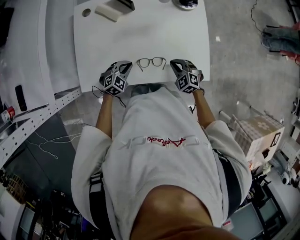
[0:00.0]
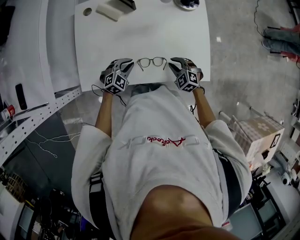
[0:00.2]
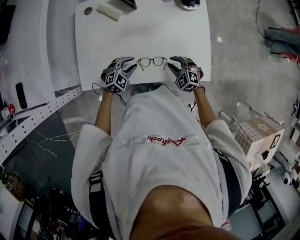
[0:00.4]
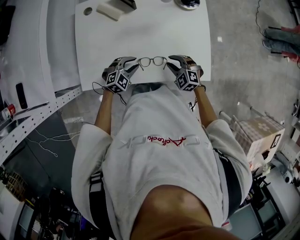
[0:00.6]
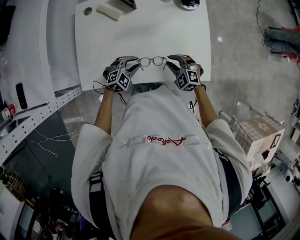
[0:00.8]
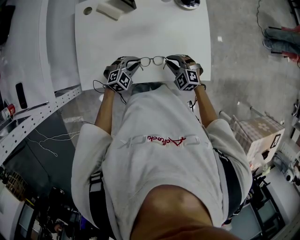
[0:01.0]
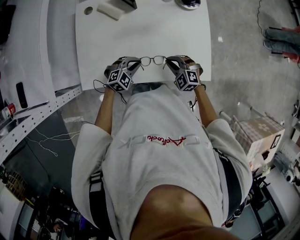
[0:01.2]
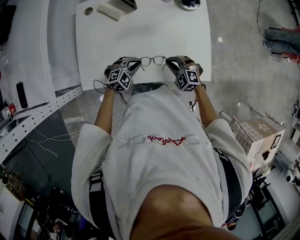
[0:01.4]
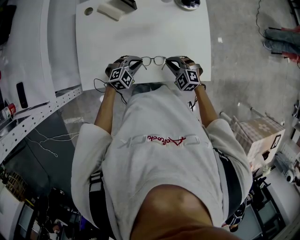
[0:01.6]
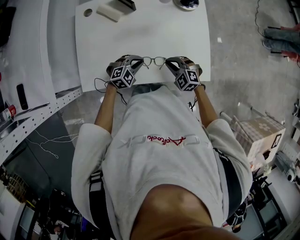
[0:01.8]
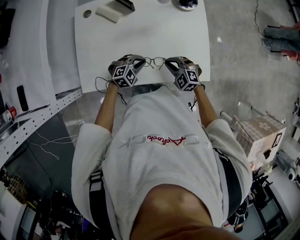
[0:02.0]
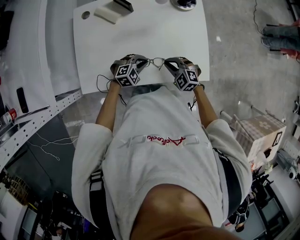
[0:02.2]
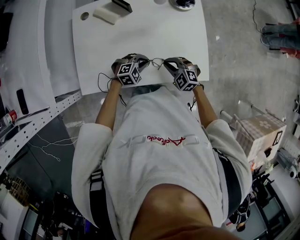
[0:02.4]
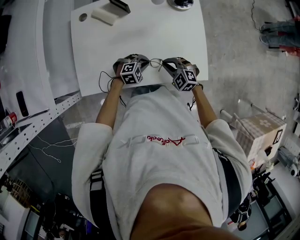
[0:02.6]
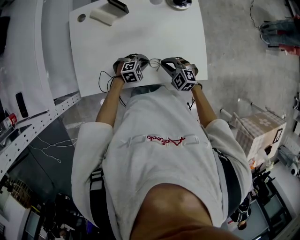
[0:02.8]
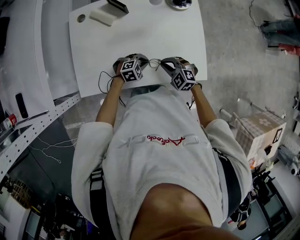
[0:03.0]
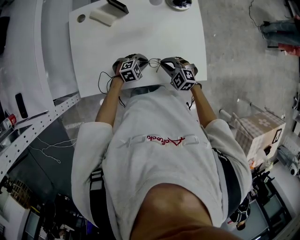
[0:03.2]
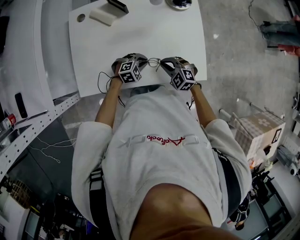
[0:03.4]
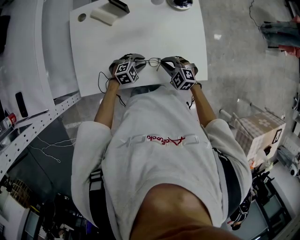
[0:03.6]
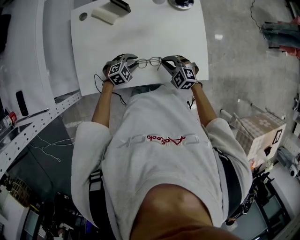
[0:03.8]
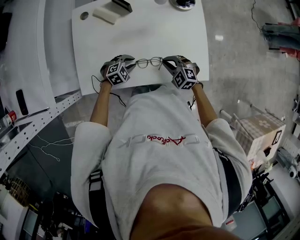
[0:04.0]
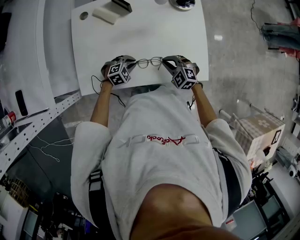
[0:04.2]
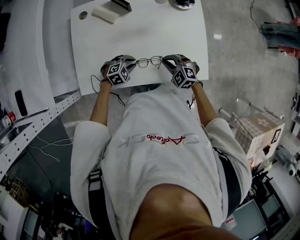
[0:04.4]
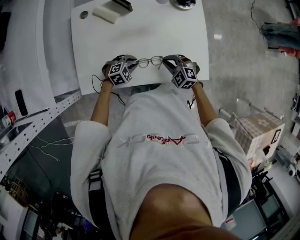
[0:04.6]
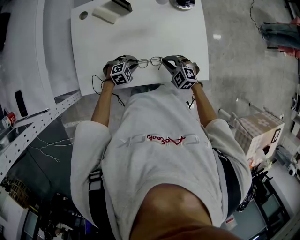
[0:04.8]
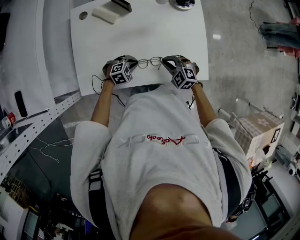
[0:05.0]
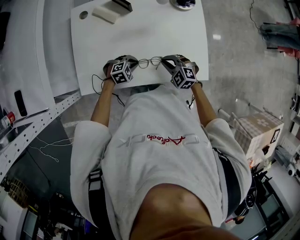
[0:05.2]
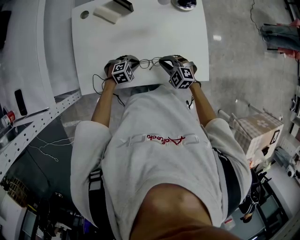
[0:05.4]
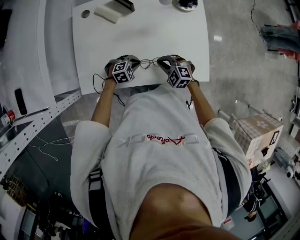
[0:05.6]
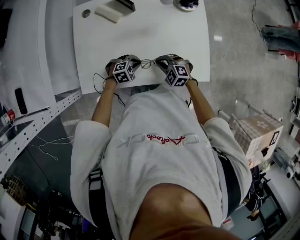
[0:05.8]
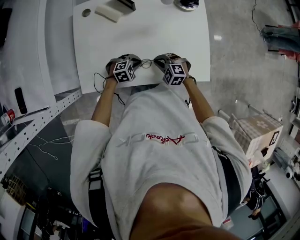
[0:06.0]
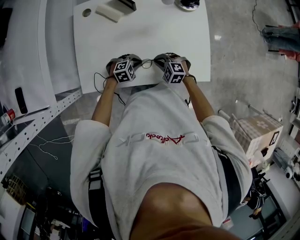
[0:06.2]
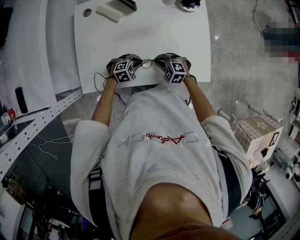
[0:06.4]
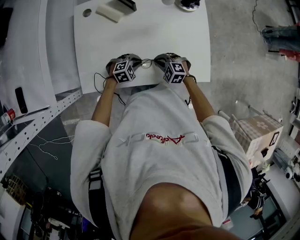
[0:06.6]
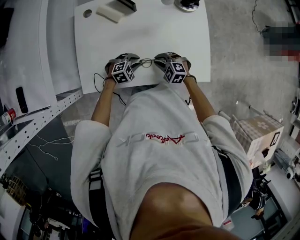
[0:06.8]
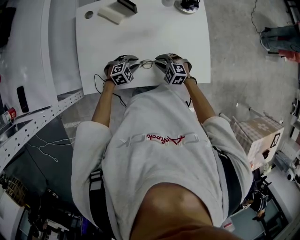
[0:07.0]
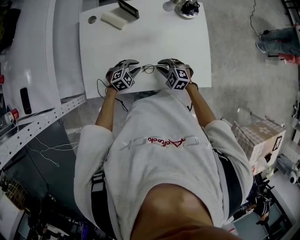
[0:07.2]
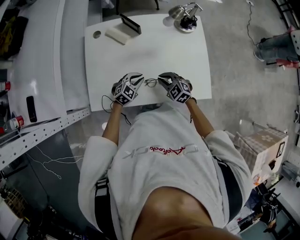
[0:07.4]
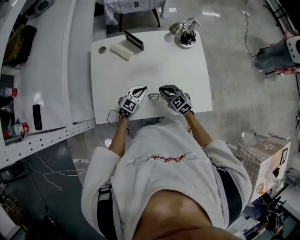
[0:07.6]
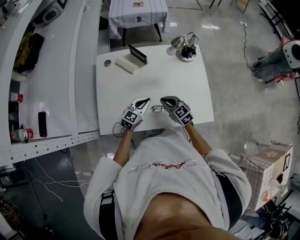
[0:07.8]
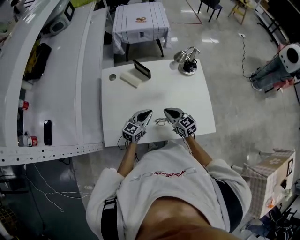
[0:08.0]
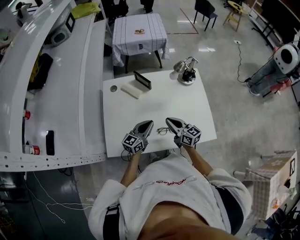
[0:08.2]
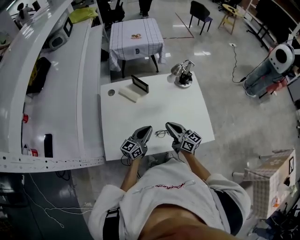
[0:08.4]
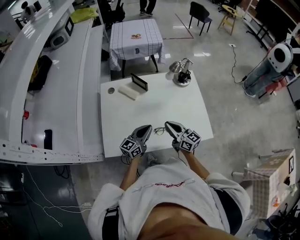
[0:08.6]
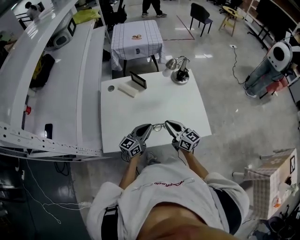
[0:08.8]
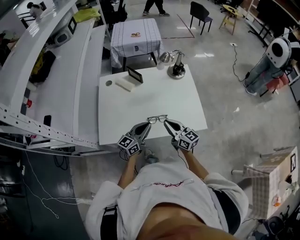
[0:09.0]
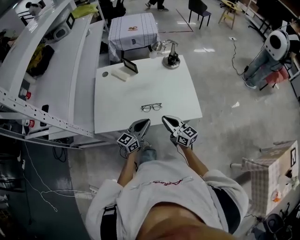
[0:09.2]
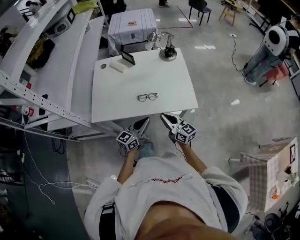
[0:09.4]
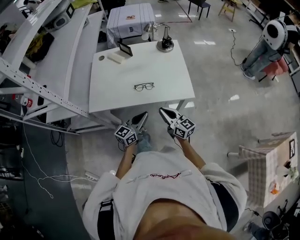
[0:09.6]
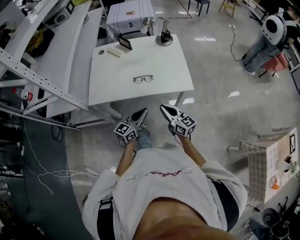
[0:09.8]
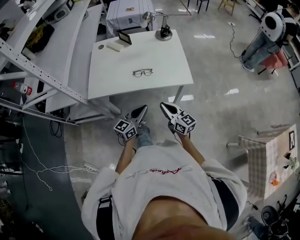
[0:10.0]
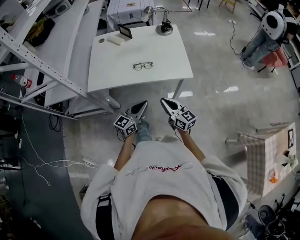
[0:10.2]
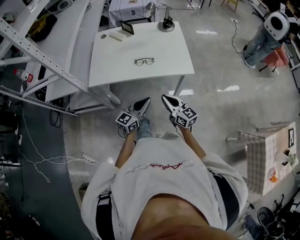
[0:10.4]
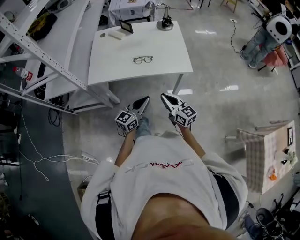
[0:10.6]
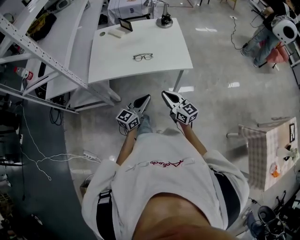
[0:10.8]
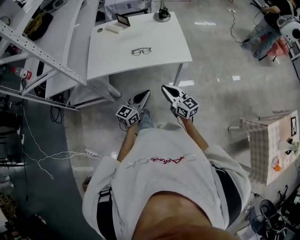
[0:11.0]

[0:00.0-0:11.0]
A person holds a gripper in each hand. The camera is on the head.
0:00.0 to 0:01.6: The left gripper moves about 5 cm, and opens, then closes again; the right gripper opens, then closes once more.
0:01.6 to 0:03.2: The left gripper ends up about 10 cm from where it was.
0:03.2 to 0:04.8: The left gripper ends up roughly 5 cm from where it was.
0:04.8 to 0:06.2: The right gripper changes place by roughly 5 cm.
0:06.2 to 0:07.8: Both grippers travel together upward, about 10 cm. The right gripper rotates some 40 degrees, while the left gripper tilts its fingers roughly 40 degrees upward.
0:07.8 to 0:09.4: The right gripper travels backward and to the right by roughly 25 cm, and turns by some 40 degrees, while the left gripper is displaced backward by approximately 25 cm, and swivels roughly 20 degrees.
0:09.4 to 0:11.0: The grippers both shift backward by approximately 15 cm.

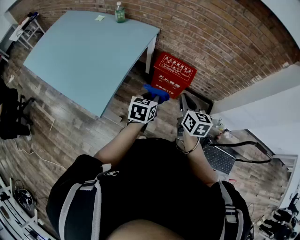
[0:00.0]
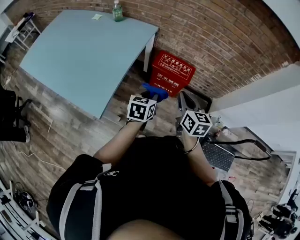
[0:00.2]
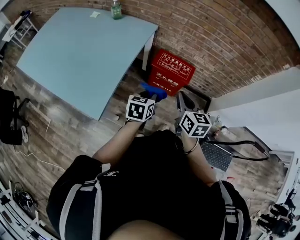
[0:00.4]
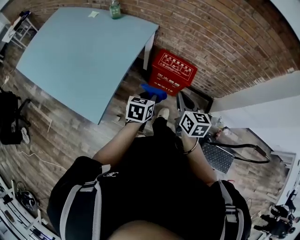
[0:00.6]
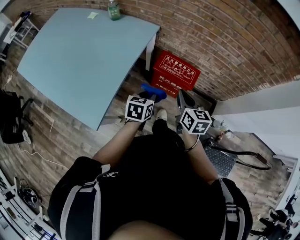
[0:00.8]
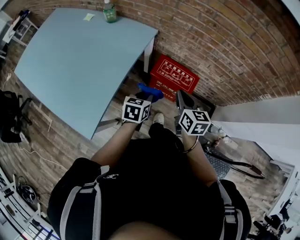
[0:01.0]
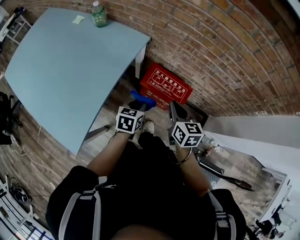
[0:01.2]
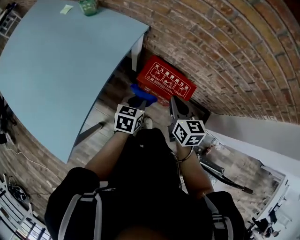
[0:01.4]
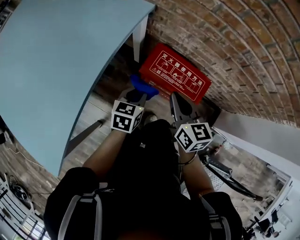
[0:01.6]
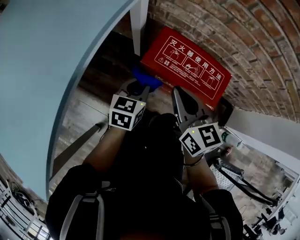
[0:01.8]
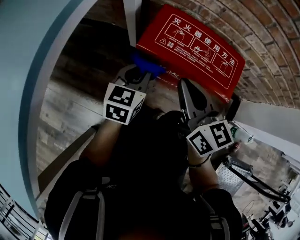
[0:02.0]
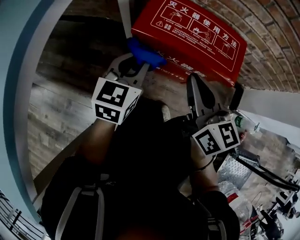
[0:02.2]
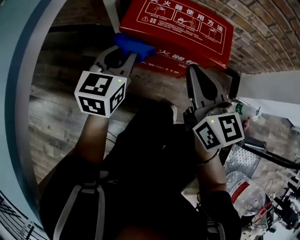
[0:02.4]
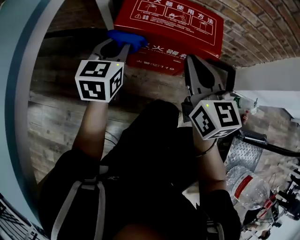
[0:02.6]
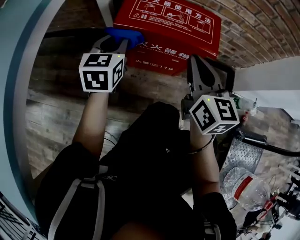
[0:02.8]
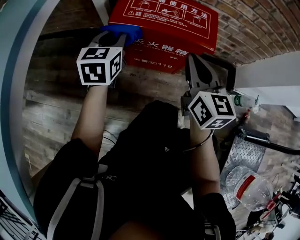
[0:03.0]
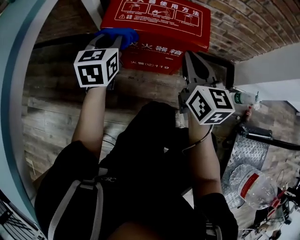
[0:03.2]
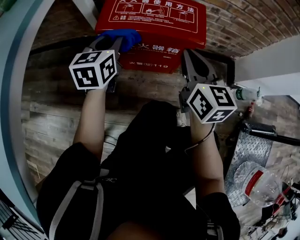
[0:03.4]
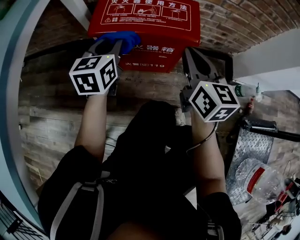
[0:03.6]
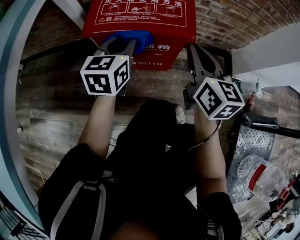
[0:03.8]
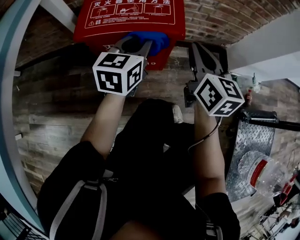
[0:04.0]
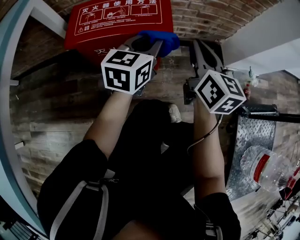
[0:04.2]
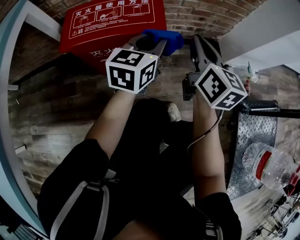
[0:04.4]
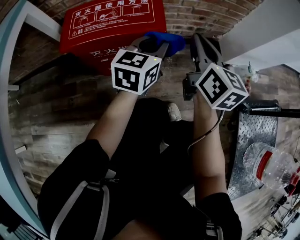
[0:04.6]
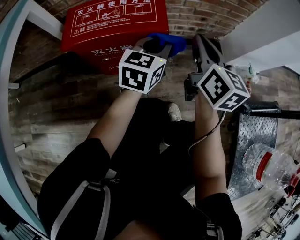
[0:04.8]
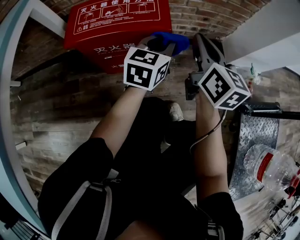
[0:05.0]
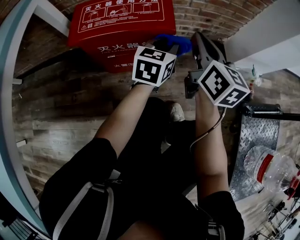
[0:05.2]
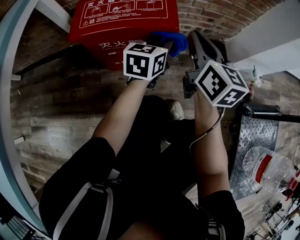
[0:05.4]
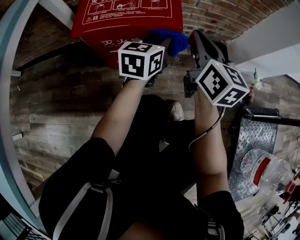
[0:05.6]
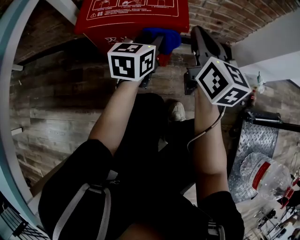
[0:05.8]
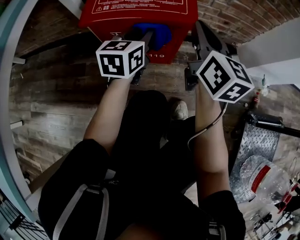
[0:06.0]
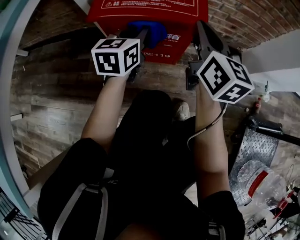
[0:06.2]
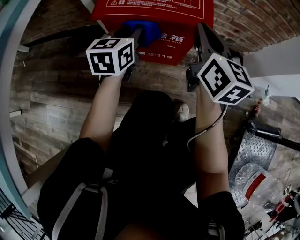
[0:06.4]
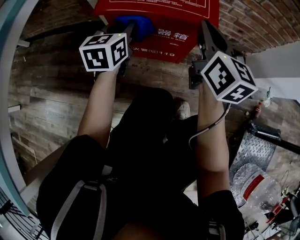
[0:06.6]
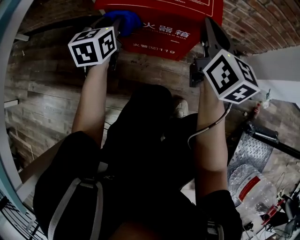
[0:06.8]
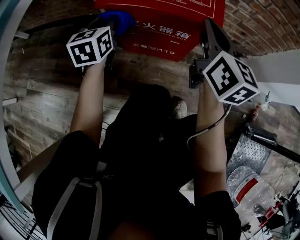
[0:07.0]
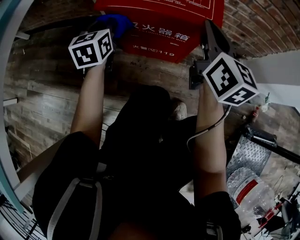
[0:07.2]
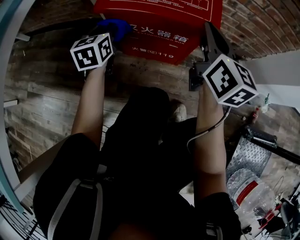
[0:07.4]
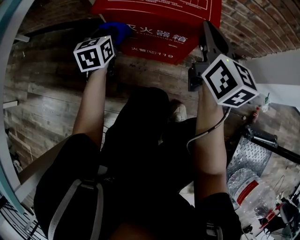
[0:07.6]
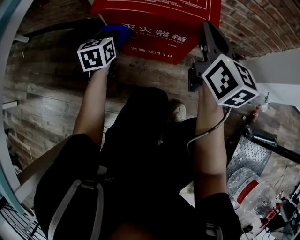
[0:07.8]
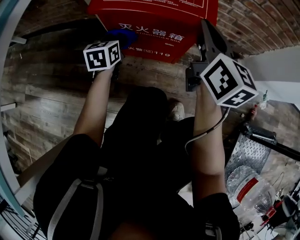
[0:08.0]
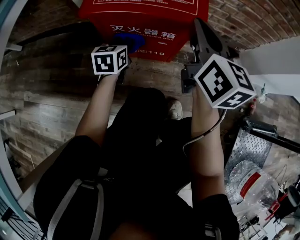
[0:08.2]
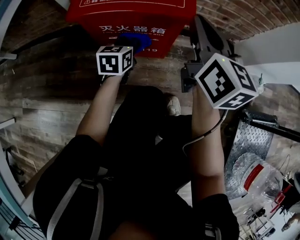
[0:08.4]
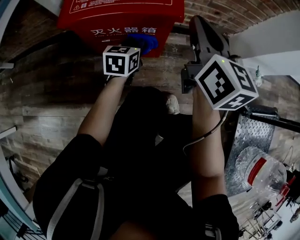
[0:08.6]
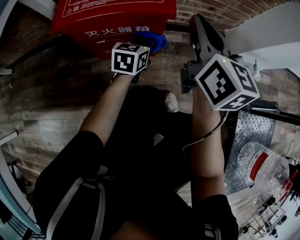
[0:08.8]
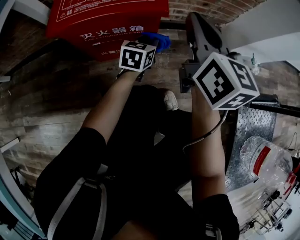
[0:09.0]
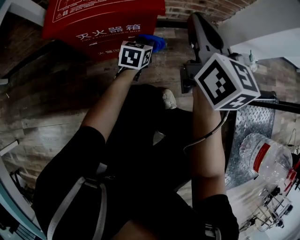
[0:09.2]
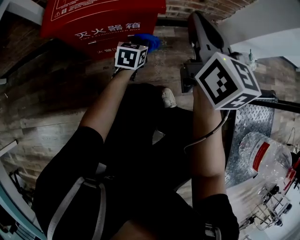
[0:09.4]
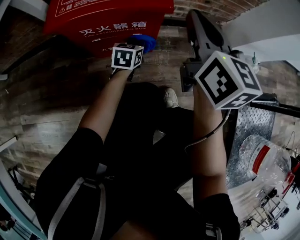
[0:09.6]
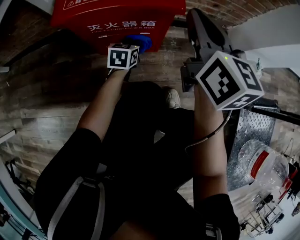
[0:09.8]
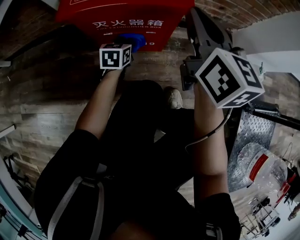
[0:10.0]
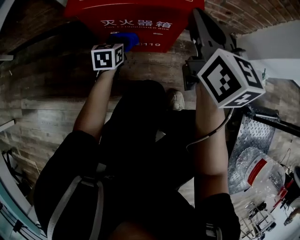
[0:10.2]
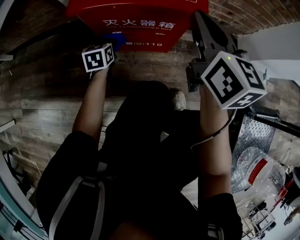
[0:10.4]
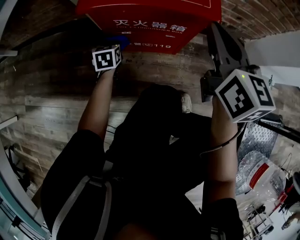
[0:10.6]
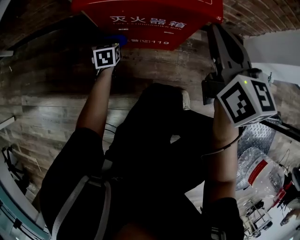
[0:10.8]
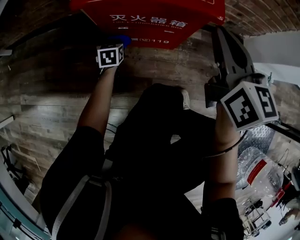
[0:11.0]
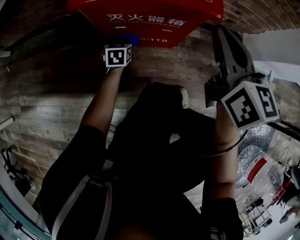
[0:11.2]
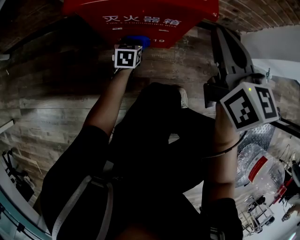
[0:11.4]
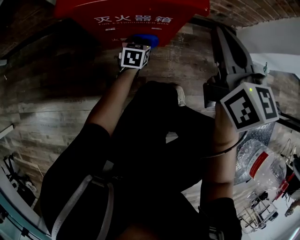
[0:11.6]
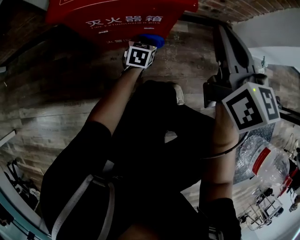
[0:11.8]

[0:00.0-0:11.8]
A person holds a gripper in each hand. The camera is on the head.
0:00.0 to 0:01.4: The two grippers go approximately 35 cm forward and downward.
0:01.4 to 0:03.0: Both grippers travel together downward, about 25 cm. The right gripper swivels some 30 degrees, while the left gripper swivels about 30 degrees.
0:03.0 to 0:04.4: The right gripper goes roughly 15 cm to the right, and changes its angle by some 20 degrees. The left gripper goes approximately 30 cm to the right, and turns by some 30 degrees.
0:04.4 to 0:06.0: The two grippers go about 10 cm to the left.
0:06.0 to 0:07.4: The left gripper is displaced to the left by some 20 cm, and rotates roughly 30 degrees.
0:07.4 to 0:08.8: The left gripper shifts about 25 cm to the right, and swivels about 30 degrees; the right gripper is displaced to the right by some 10 cm.
0:08.8 to 0:10.4: The right gripper is displaced to the left by some 10 cm. Meanwhile the left gripper goes roughly 25 cm to the left, and swivels some 30 degrees.
0:10.4 to 0:11.8: The left gripper heads to the right, covering some 20 cm, and rotates approximately 20 degrees. Meanwhile the right gripper travels to the right by some 5 cm.

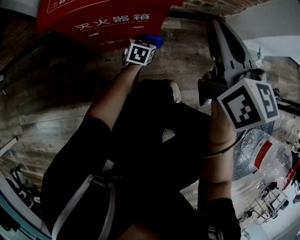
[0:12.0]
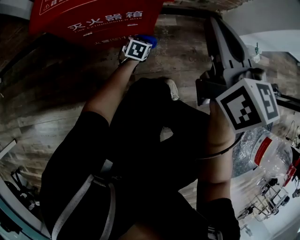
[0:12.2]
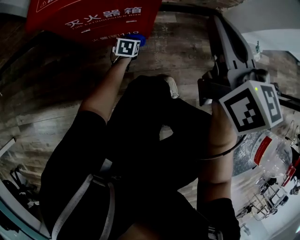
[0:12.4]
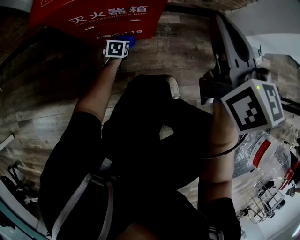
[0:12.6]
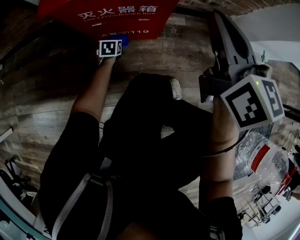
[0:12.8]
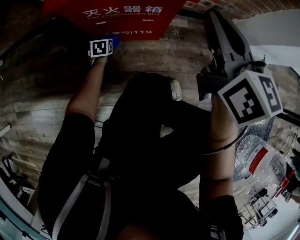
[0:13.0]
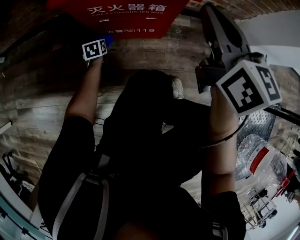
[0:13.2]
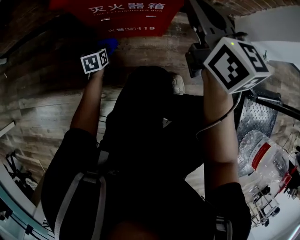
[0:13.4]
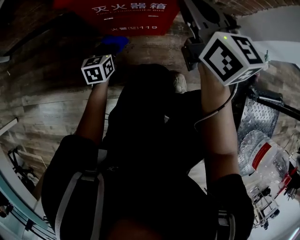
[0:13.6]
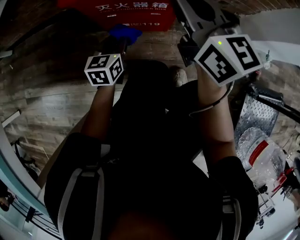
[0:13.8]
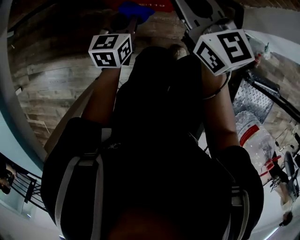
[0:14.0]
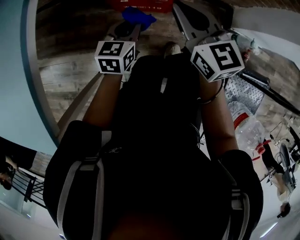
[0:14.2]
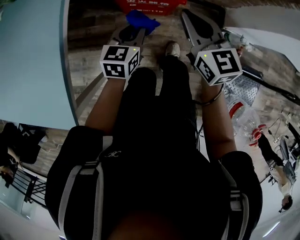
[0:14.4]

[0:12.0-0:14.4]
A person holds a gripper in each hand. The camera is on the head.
0:12.0 to 0:13.2: The left gripper shifts approximately 30 cm to the left, and changes its angle by roughly 40 degrees. Meanwhile the right gripper travels to the left by roughly 5 cm.
0:13.2 to 0:14.4: The left gripper shifts about 60 cm upward, and swivels about 30 degrees; the right gripper travels upward by approximately 25 cm.
